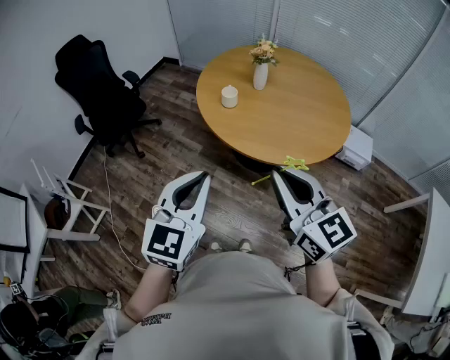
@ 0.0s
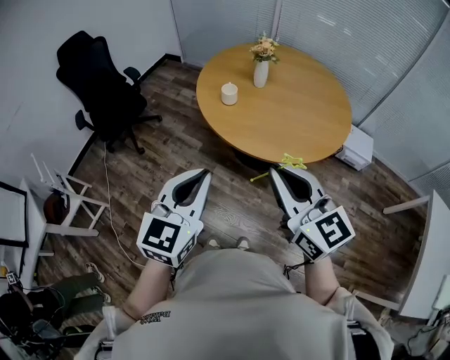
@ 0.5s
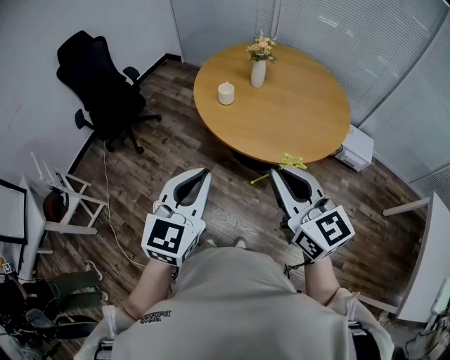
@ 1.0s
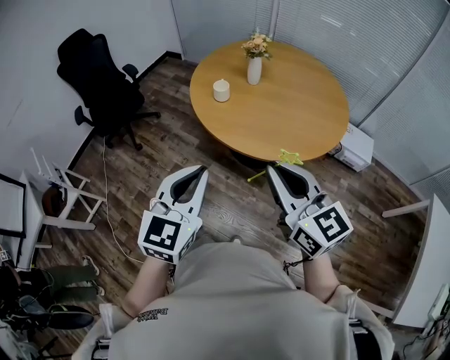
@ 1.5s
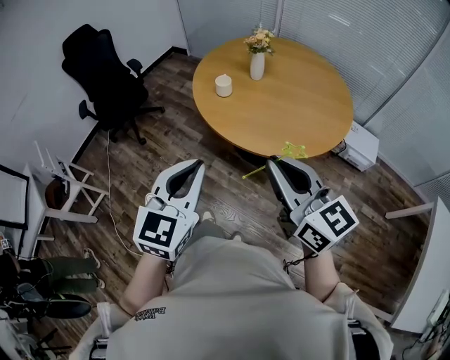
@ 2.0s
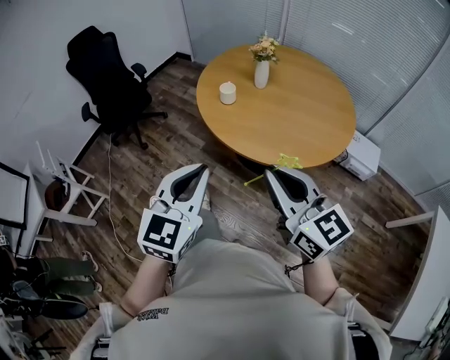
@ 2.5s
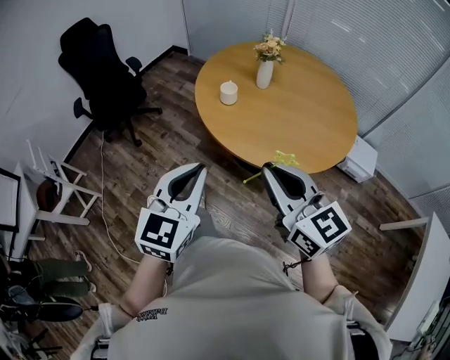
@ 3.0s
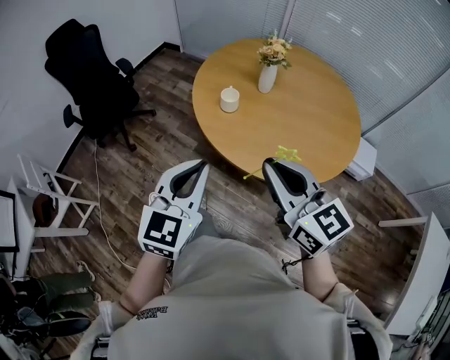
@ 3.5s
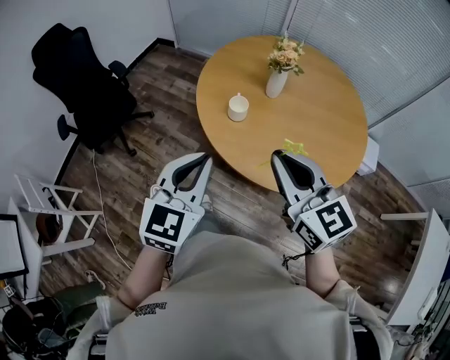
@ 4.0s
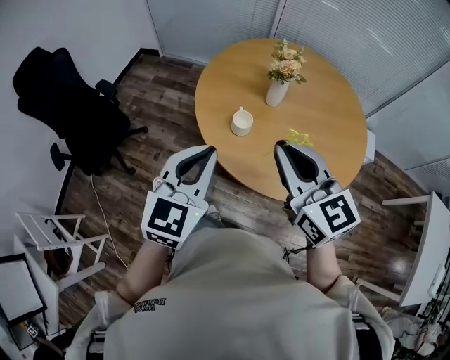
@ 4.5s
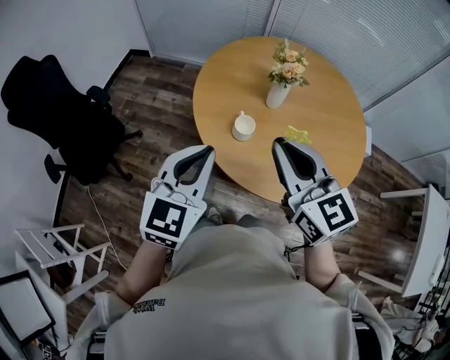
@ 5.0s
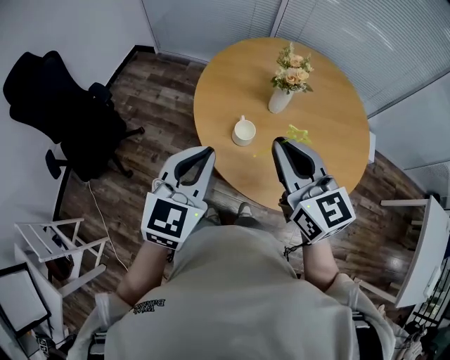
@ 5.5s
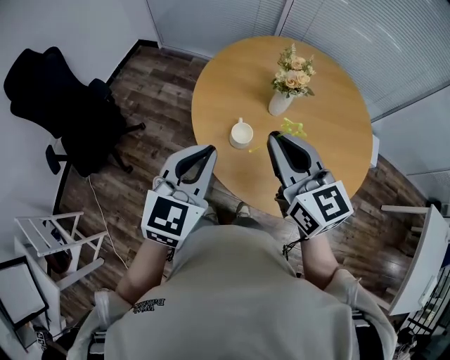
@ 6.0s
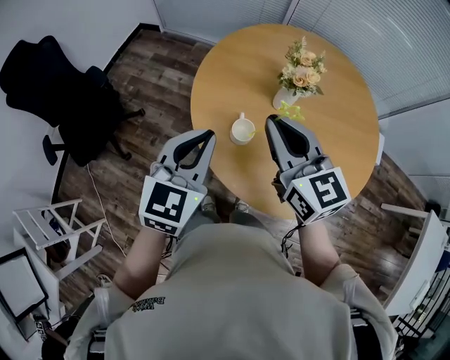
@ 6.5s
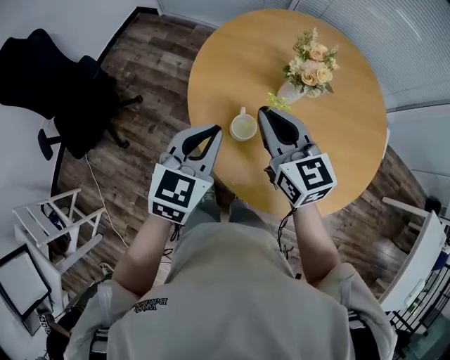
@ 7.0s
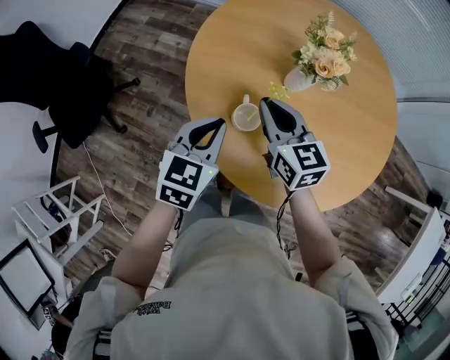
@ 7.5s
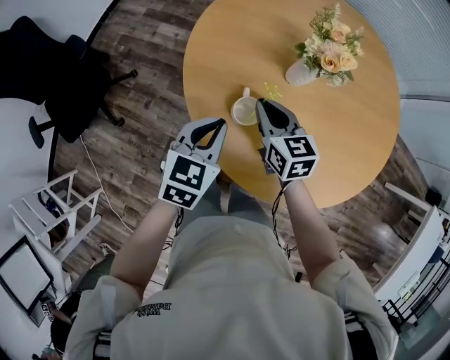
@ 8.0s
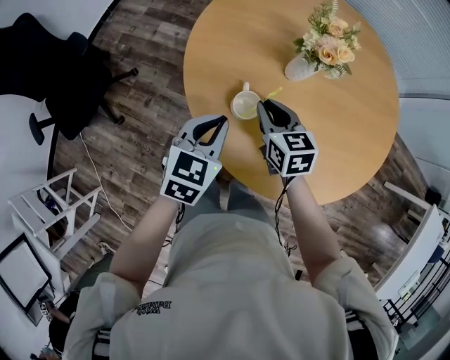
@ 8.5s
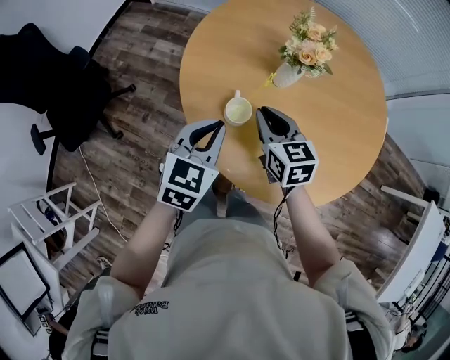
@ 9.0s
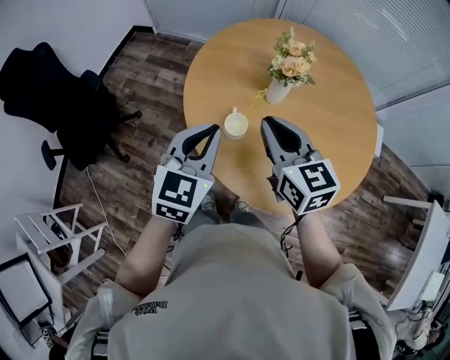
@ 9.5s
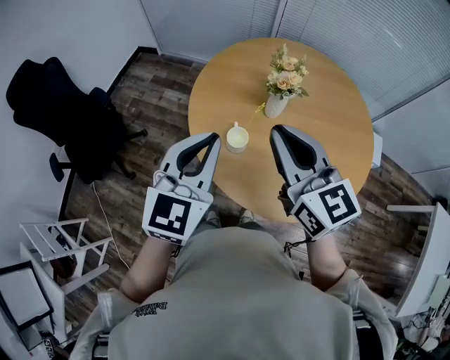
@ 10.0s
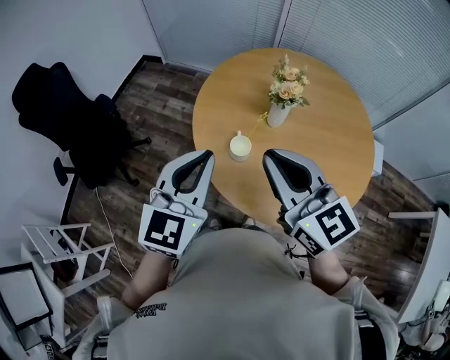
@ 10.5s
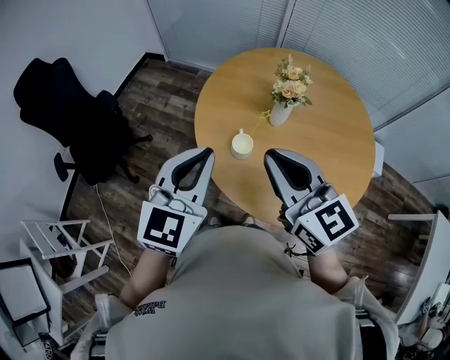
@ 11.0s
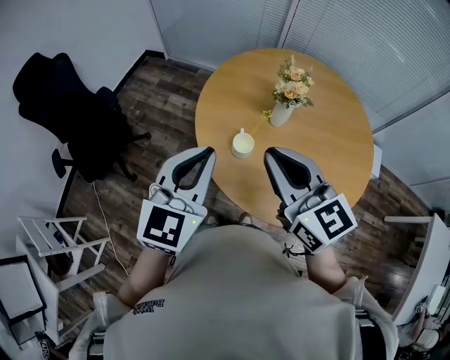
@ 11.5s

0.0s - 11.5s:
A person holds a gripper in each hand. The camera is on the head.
0.0s - 2.0s: Both grippers travel together to the right, about 10 cm.
2.0s - 4.0s: Both grippers travel together forward, roughly 25 cm.
4.0s - 6.0s: The two grippers go approximately 20 cm forward.
6.0s - 7.5s: The two grippers go roughly 20 cm downward and forward.
7.5s - 9.5s: The grippers both shift upward and backward by approximately 15 cm.
9.5s - 11.5s: Both grippers move upward and backward, some 10 cm.

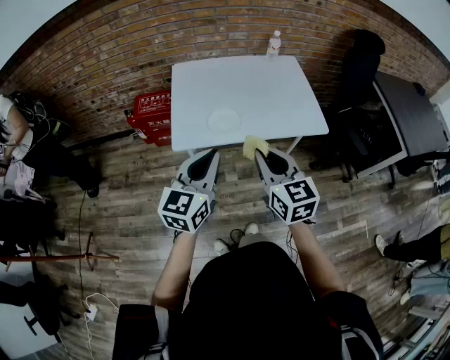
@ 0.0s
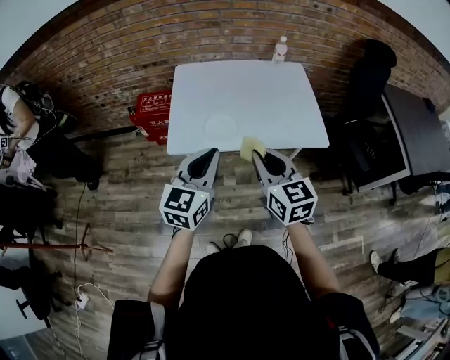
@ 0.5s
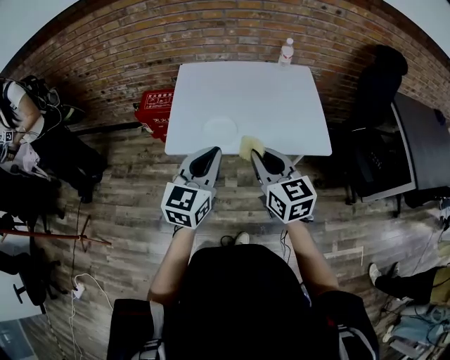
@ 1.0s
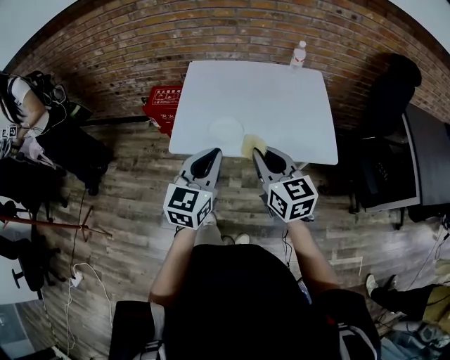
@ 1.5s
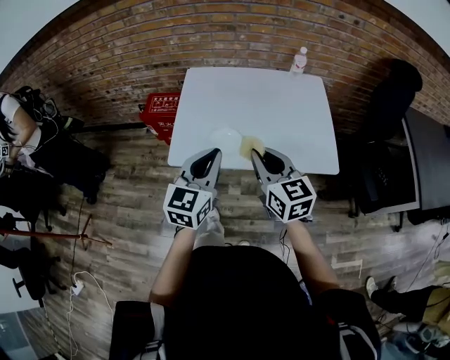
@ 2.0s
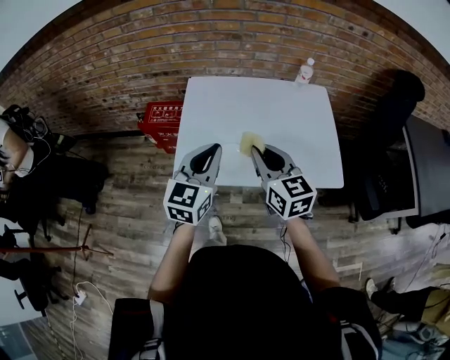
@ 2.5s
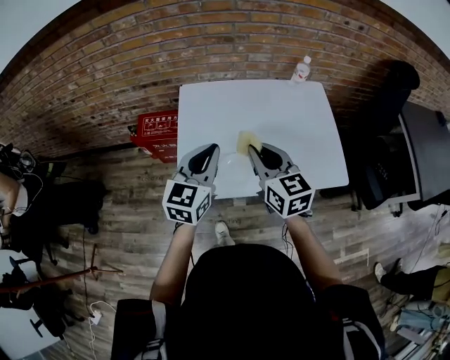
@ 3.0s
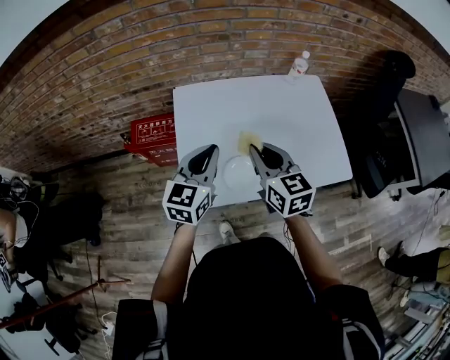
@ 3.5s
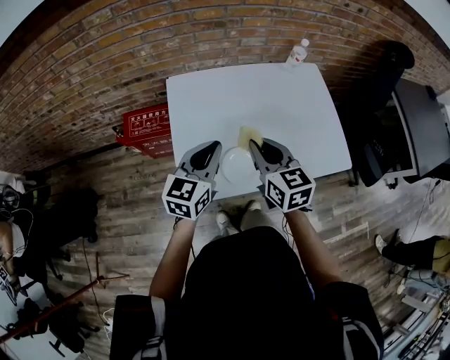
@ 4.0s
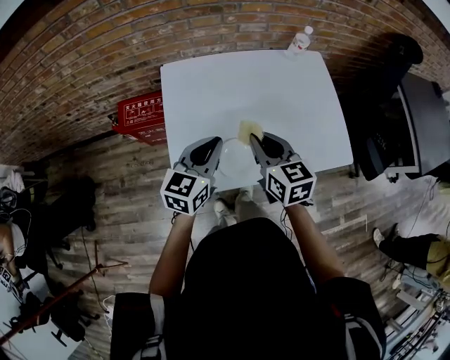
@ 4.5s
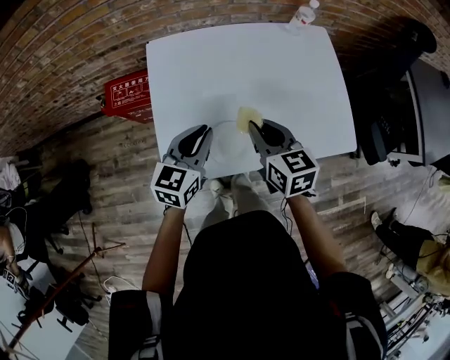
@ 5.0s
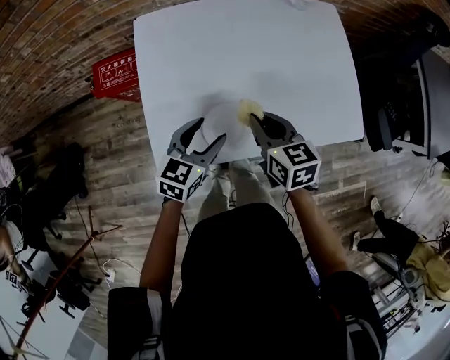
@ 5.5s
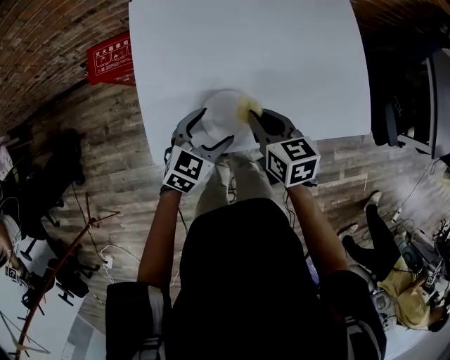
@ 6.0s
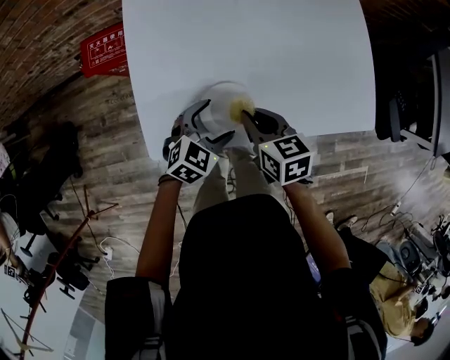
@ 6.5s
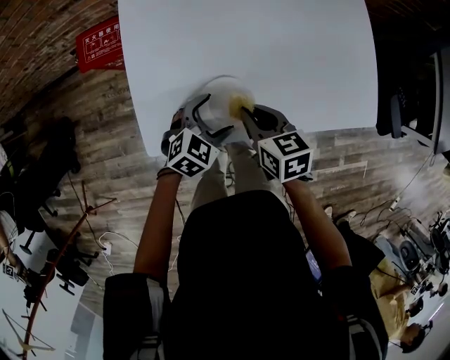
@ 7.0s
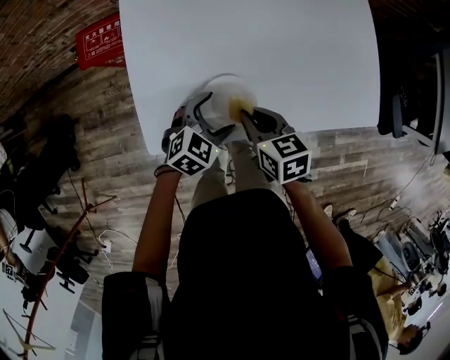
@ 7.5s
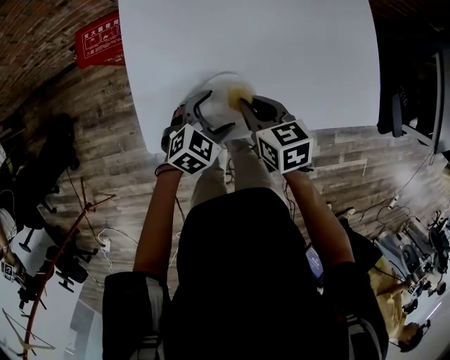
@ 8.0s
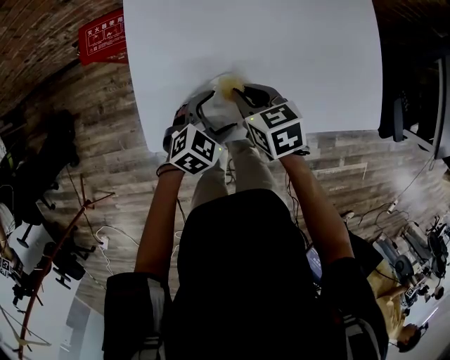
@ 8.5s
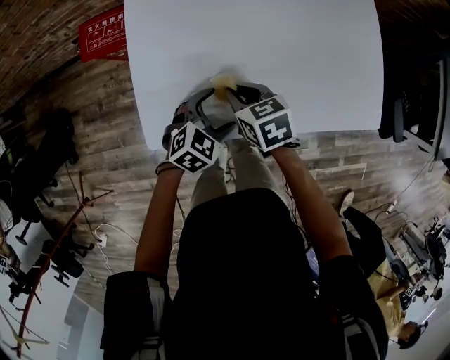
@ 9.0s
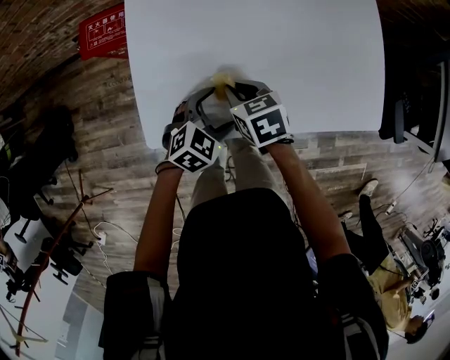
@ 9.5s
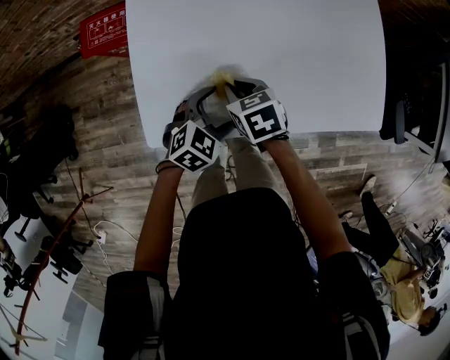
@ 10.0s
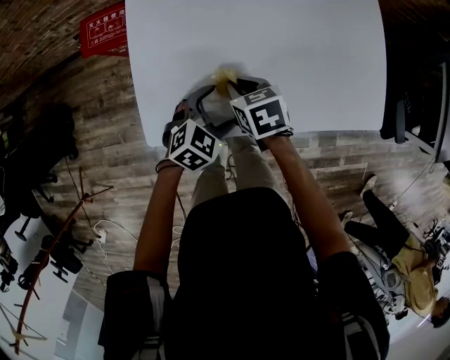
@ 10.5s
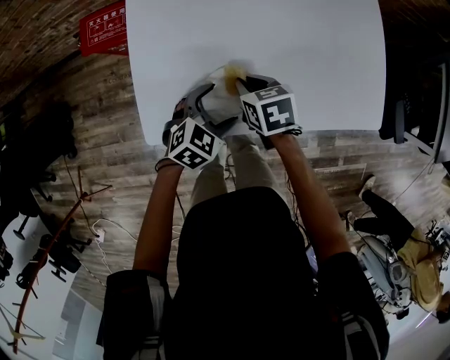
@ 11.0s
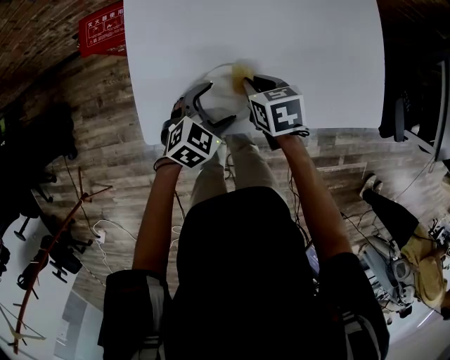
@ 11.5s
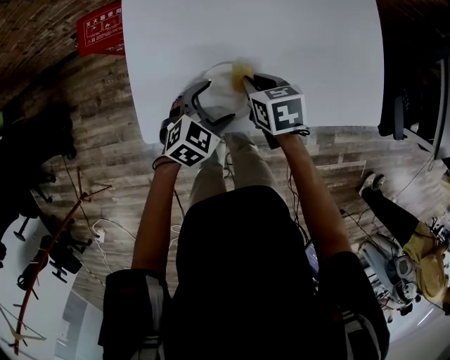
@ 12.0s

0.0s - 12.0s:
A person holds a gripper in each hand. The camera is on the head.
0.0s - 2.0s: The left gripper heads forward and to the right, covering roughly 15 cm. The right gripper goes about 15 cm forward.
2.0s - 4.0s: Both grippers move forward and to the left, about 20 cm.
4.0s - 6.0s: The two grippers go approximately 20 cm downward. The right gripper rotates about 20 degrees, while the left gripper rotates some 30 degrees, and opens its fingers.
6.0s - 8.0s: The left gripper travels downward by some 5 cm. Meanwhile the right gripper moves about 5 cm.
8.0s - 10.0s: The right gripper shifts by roughly 5 cm.
10.0s - 12.0s: The right gripper heads to the right, covering about 5 cm.

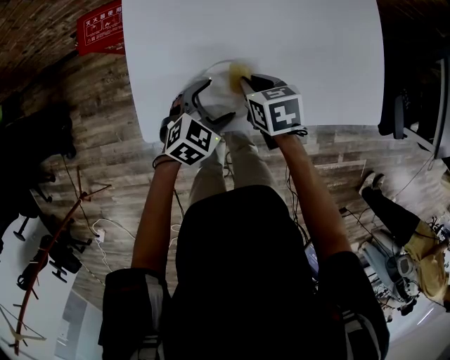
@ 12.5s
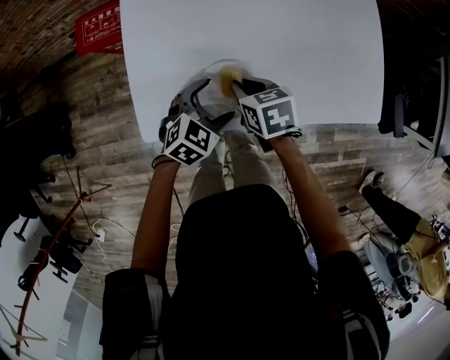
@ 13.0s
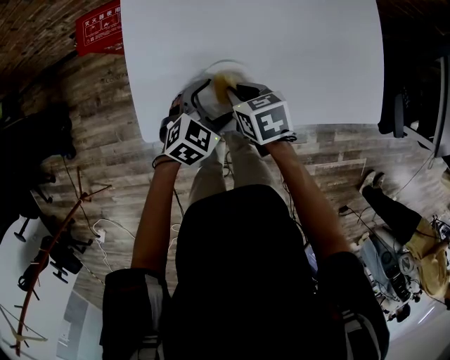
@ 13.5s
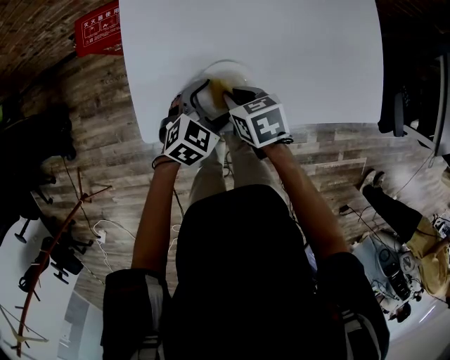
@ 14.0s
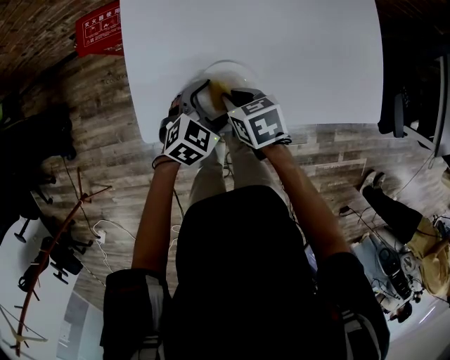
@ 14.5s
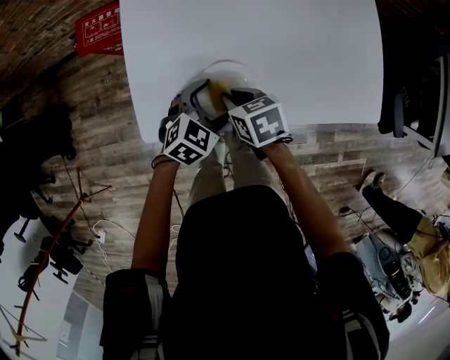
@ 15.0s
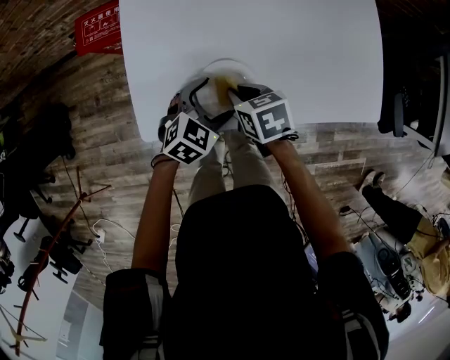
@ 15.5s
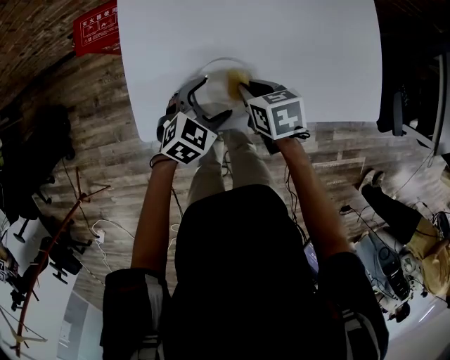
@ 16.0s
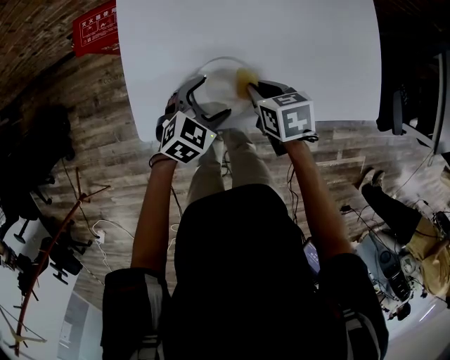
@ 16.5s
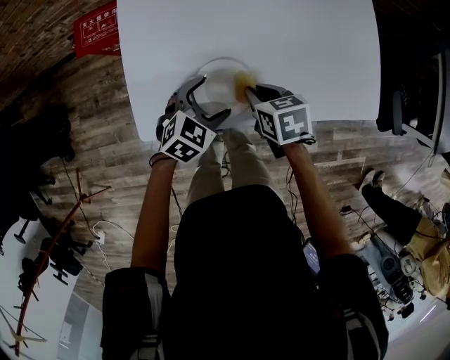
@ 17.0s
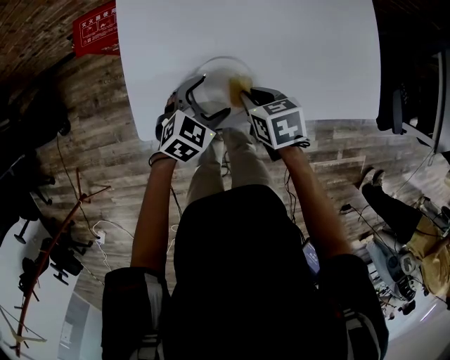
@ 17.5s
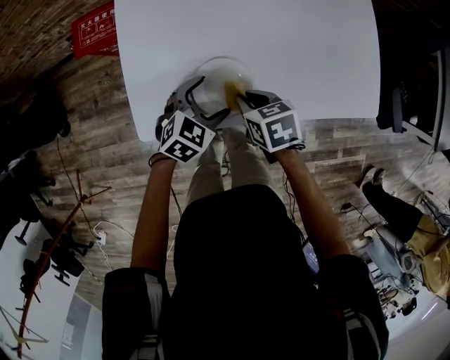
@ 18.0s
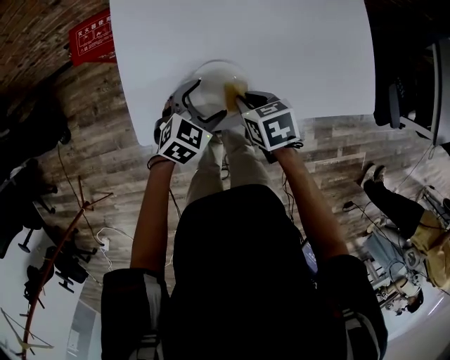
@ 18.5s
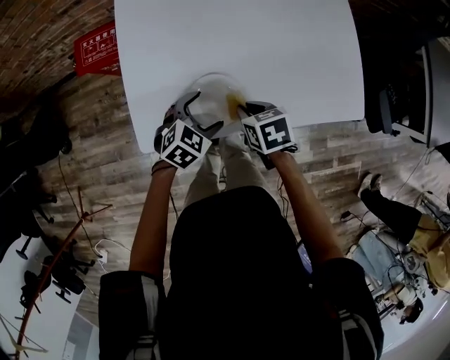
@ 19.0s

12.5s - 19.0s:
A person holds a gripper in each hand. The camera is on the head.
12.5s - 14.5s: The right gripper shifts by about 5 cm.
14.5s - 17.0s: The right gripper moves to the right, roughly 5 cm.
17.0s - 19.0s: The grippers move only a little.
